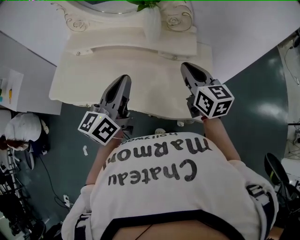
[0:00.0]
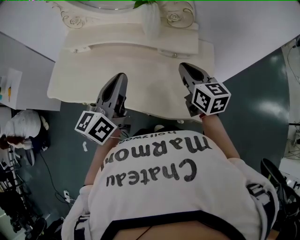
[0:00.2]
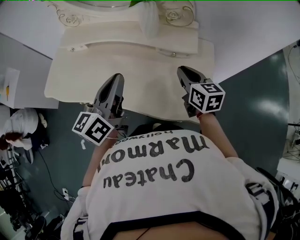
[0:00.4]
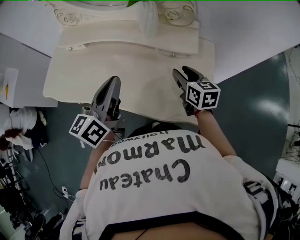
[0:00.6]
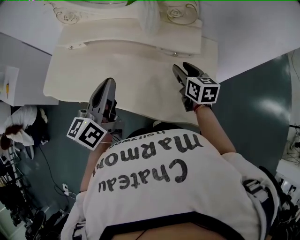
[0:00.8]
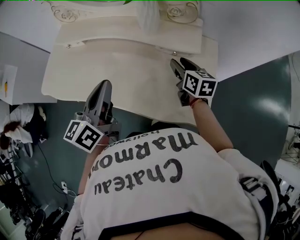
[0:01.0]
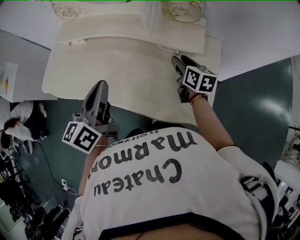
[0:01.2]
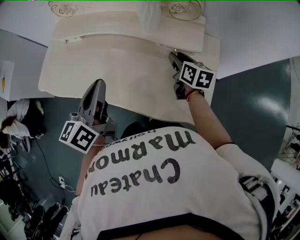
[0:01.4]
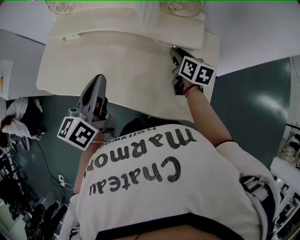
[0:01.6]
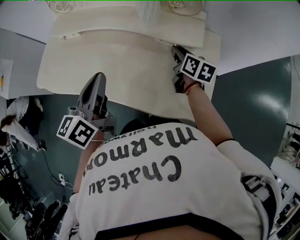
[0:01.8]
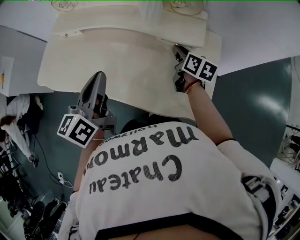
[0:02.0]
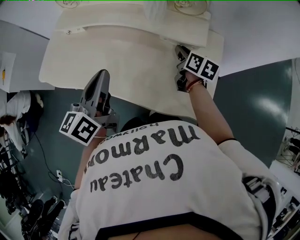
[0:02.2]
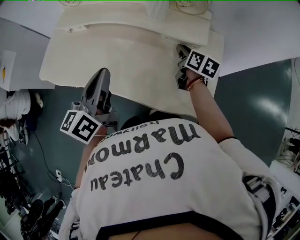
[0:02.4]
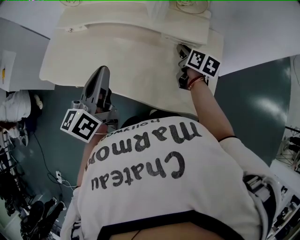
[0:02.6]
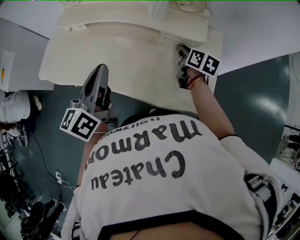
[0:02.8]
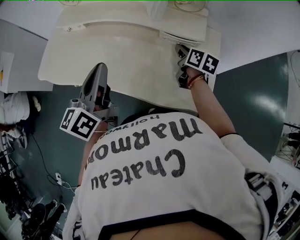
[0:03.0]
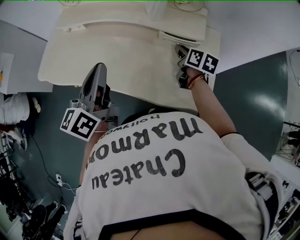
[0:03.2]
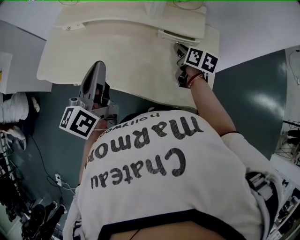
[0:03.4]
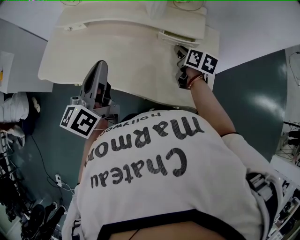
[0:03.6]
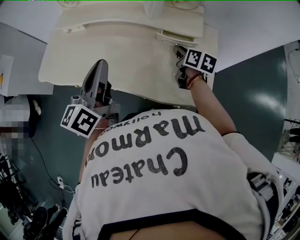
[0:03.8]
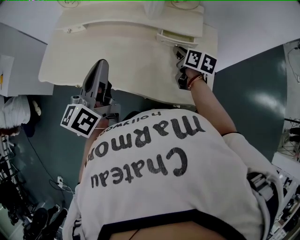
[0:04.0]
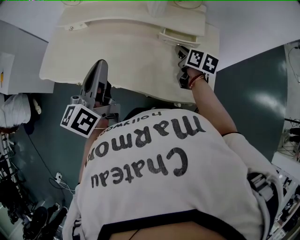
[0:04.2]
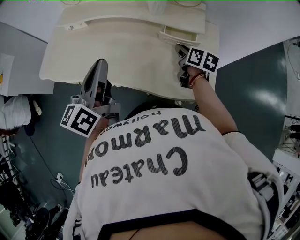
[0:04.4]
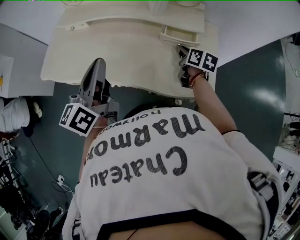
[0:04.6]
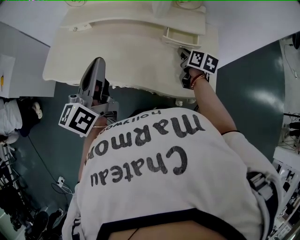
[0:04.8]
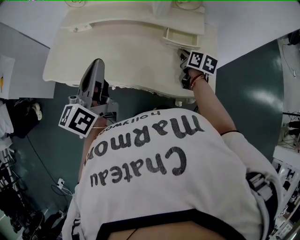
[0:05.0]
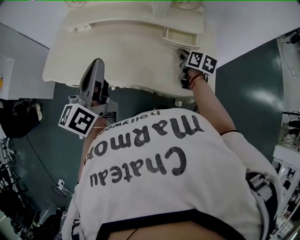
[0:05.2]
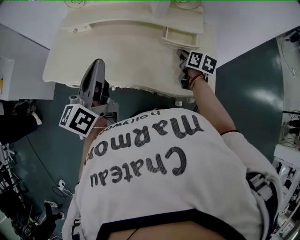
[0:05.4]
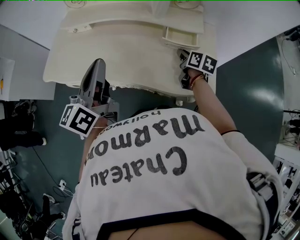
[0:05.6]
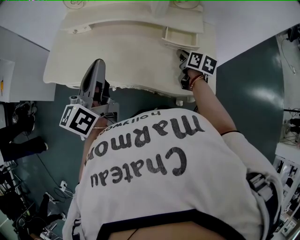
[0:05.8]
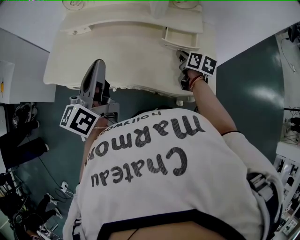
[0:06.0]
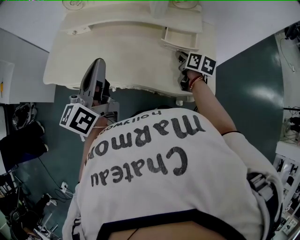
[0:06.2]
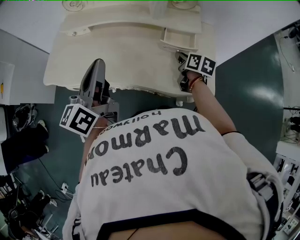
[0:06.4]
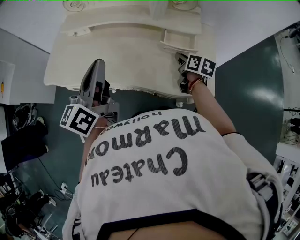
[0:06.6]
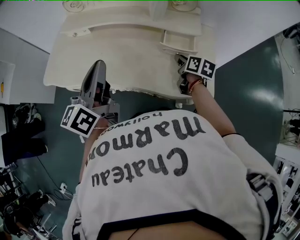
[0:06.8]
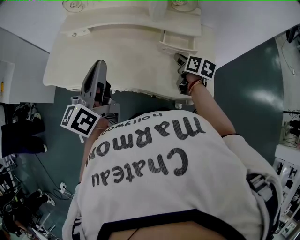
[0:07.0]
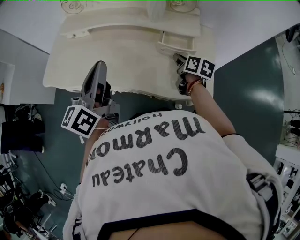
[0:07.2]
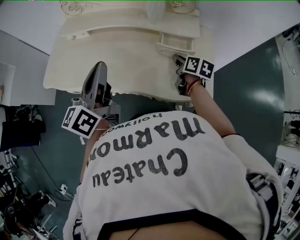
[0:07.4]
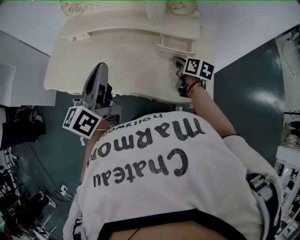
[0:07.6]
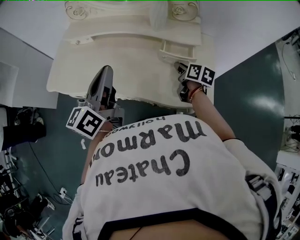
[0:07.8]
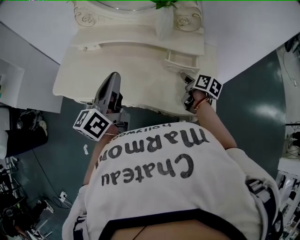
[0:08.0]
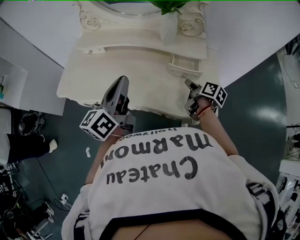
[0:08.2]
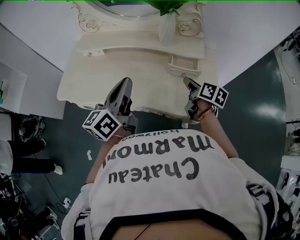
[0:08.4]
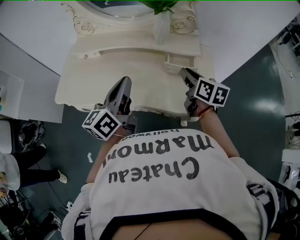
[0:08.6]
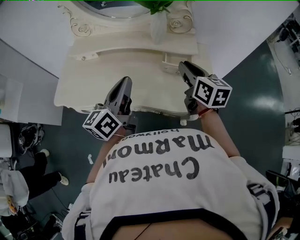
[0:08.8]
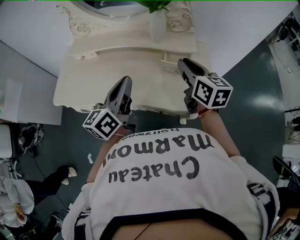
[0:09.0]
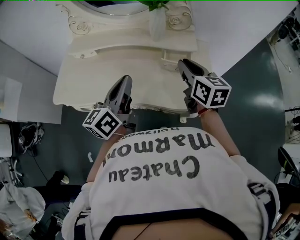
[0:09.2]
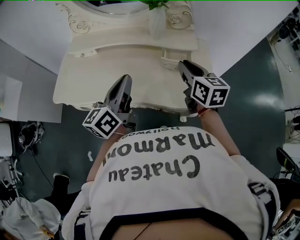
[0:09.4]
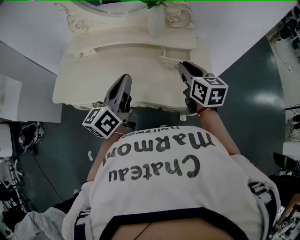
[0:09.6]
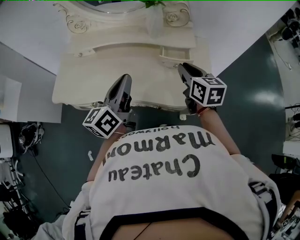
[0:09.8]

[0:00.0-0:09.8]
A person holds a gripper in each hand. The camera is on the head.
0:00.0 to 0:01.4: The left gripper moves downward, approximately 5 cm, while the right gripper moves downward and forward, some 20 cm, rotates some 20 degrees, and opens its fingers.
0:01.4 to 0:04.2: There are only small adjustments of the grippers.
0:04.2 to 0:05.6: The left gripper ends up roughly 5 cm from where it was.
0:05.6 to 0:07.0: The grippers make only small movements.
0:07.0 to 0:08.4: The right gripper travels upward by approximately 5 cm.
0:08.4 to 0:09.8: The right gripper moves upward, some 10 cm, and swivels some 30 degrees.

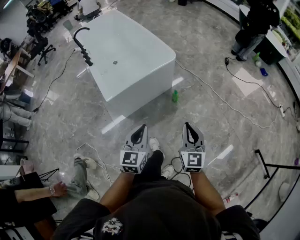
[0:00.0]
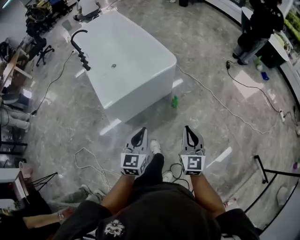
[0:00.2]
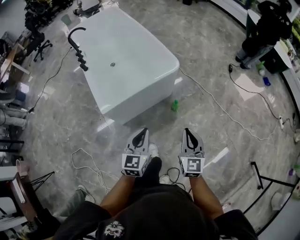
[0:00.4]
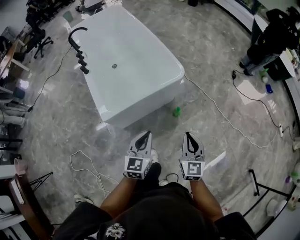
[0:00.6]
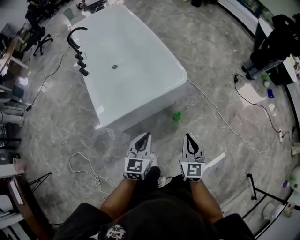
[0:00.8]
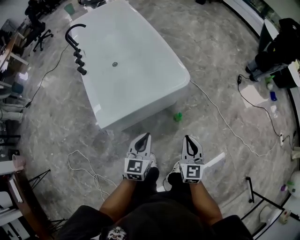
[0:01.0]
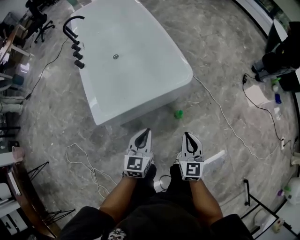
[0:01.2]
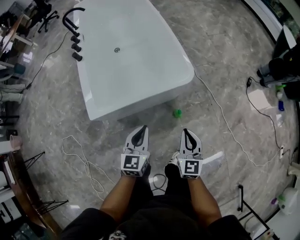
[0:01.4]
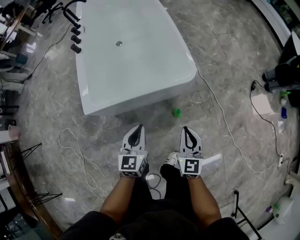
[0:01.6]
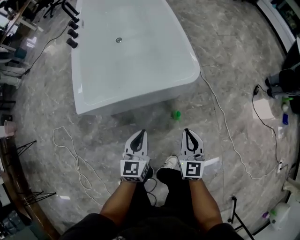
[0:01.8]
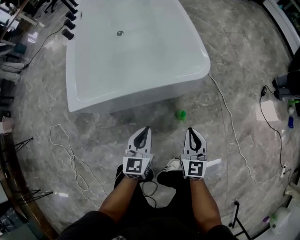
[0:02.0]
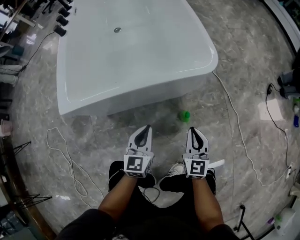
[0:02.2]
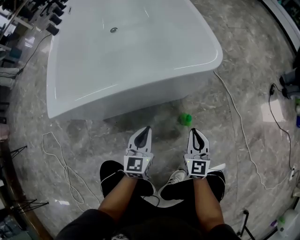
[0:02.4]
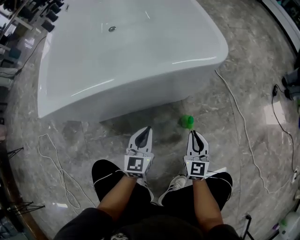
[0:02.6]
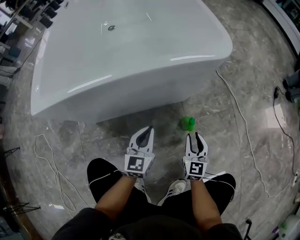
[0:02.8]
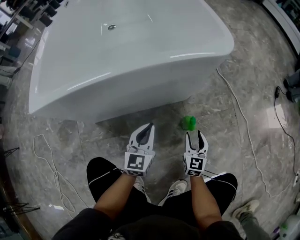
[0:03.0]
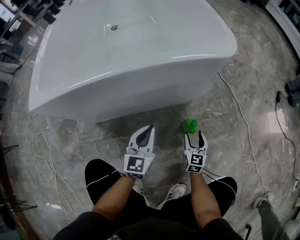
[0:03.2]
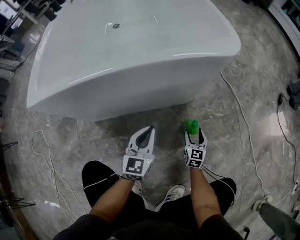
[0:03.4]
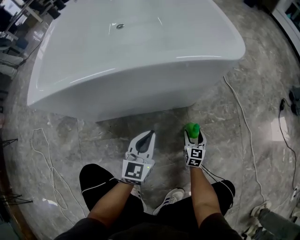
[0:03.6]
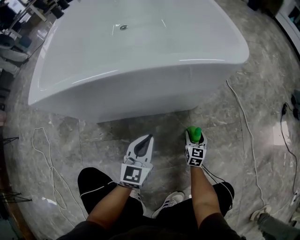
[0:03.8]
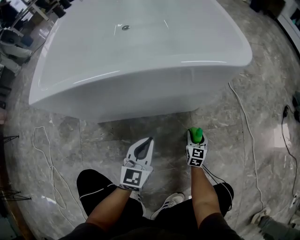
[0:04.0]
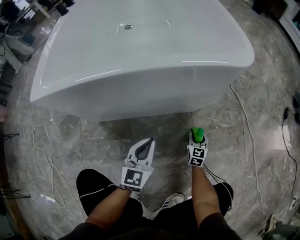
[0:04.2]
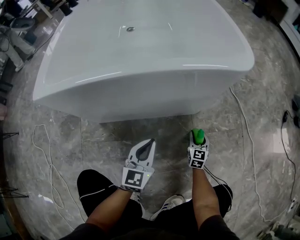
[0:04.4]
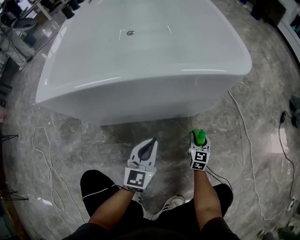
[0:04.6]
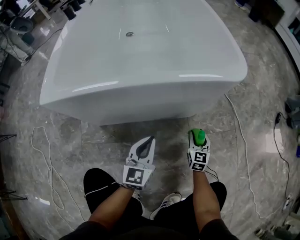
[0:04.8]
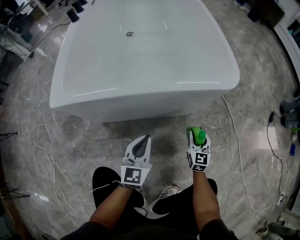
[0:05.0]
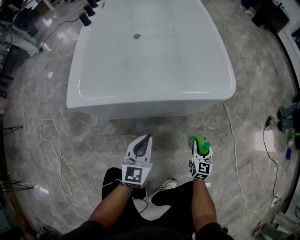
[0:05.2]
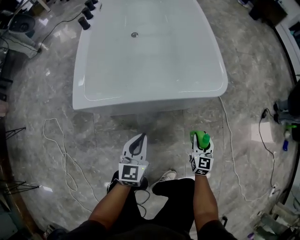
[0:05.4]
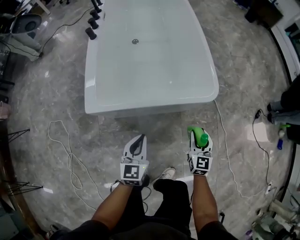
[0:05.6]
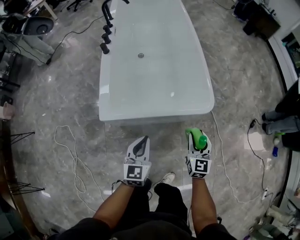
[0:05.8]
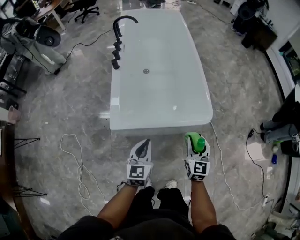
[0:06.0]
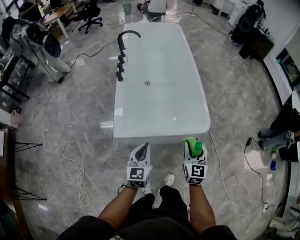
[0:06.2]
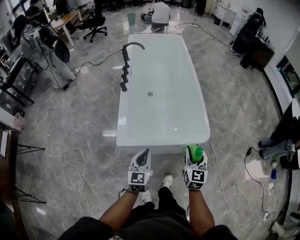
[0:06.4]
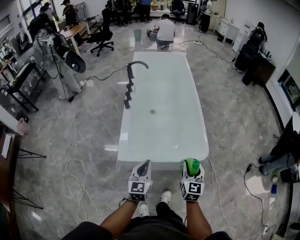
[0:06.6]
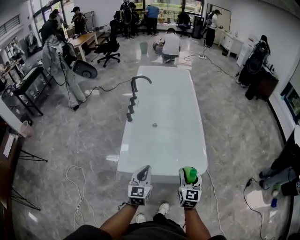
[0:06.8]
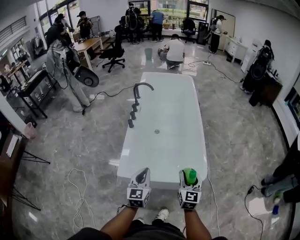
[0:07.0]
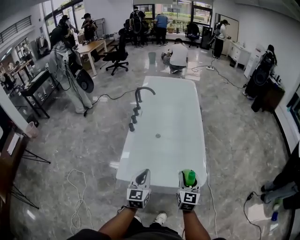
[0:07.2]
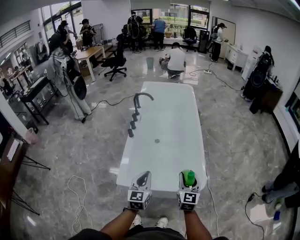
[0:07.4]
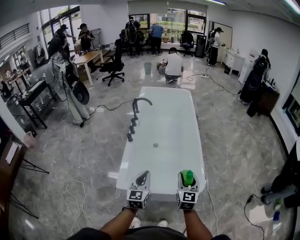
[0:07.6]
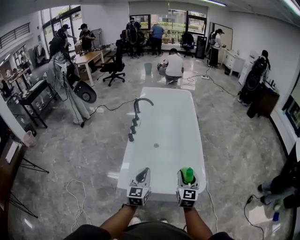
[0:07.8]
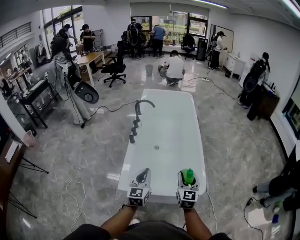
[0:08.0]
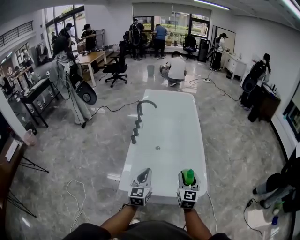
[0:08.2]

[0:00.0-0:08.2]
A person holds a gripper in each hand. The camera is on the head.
0:00.0 to 0:01.6: Both grippers move forward and downward, approximately 40 cm. The left gripper swivels roughly 20 degrees.
0:01.6 to 0:03.2: Both grippers travel together downward, about 50 cm. The right gripper opens up.
0:03.2 to 0:05.0: The left gripper is displaced upward and to the left by about 15 cm. The right gripper is displaced upward and forward by approximately 15 cm.
0:05.0 to 0:06.6: Both grippers move upward, approximately 60 cm.
0:06.6 to 0:08.2: Both grippers move forward and upward, about 15 cm.

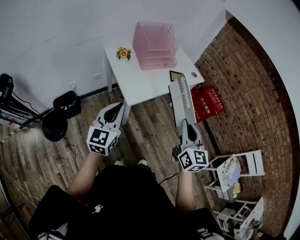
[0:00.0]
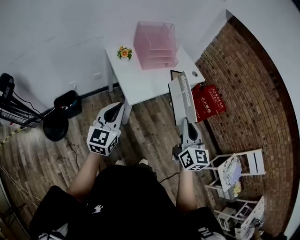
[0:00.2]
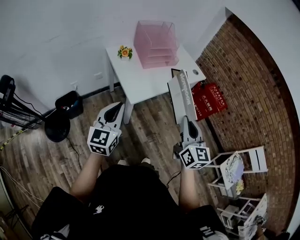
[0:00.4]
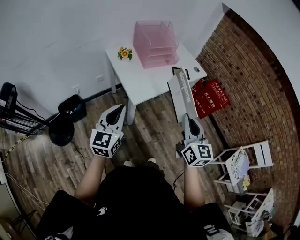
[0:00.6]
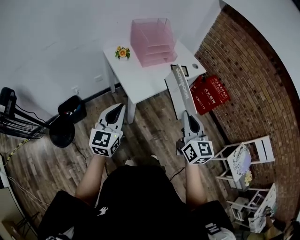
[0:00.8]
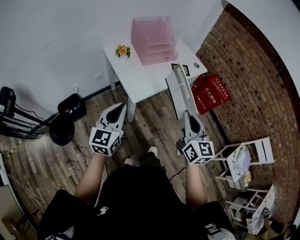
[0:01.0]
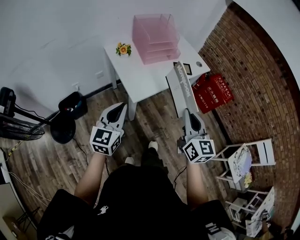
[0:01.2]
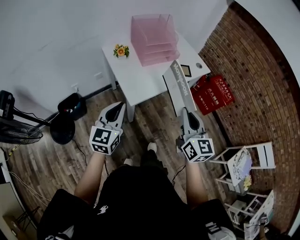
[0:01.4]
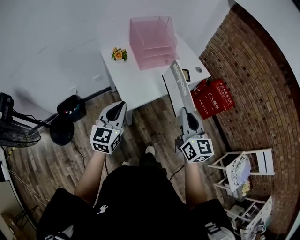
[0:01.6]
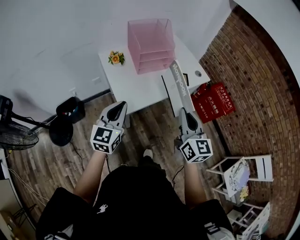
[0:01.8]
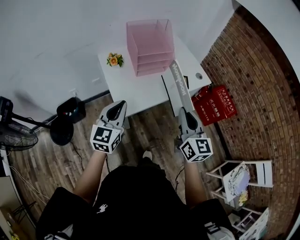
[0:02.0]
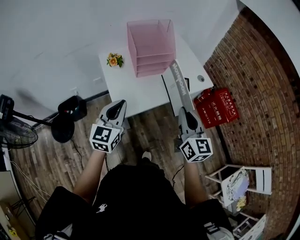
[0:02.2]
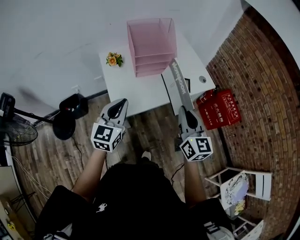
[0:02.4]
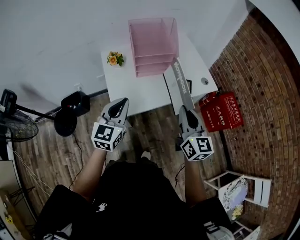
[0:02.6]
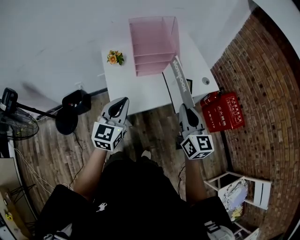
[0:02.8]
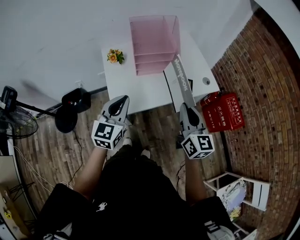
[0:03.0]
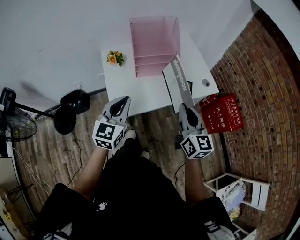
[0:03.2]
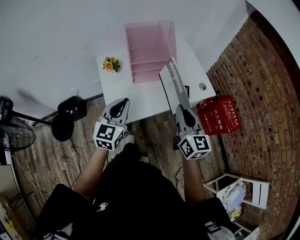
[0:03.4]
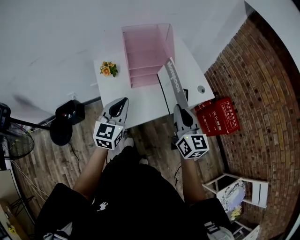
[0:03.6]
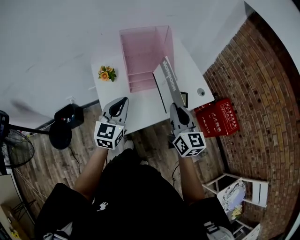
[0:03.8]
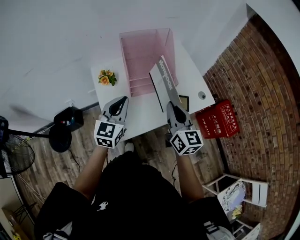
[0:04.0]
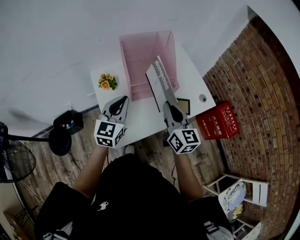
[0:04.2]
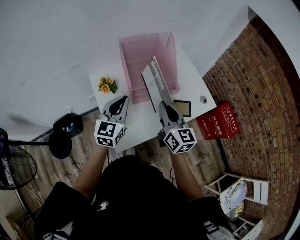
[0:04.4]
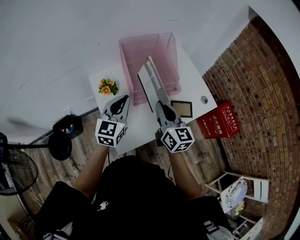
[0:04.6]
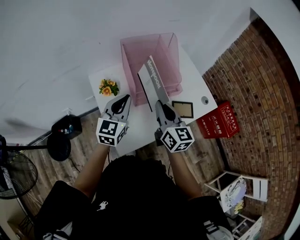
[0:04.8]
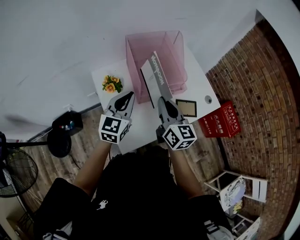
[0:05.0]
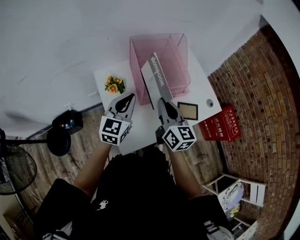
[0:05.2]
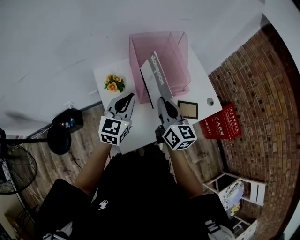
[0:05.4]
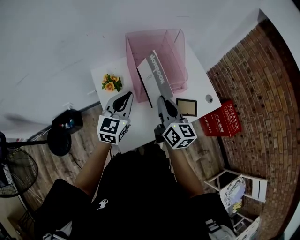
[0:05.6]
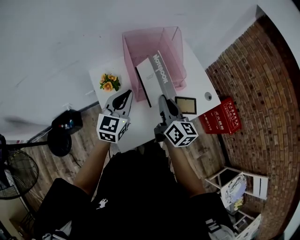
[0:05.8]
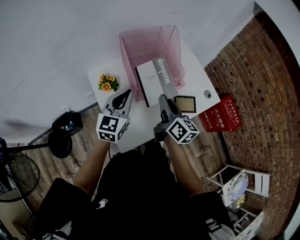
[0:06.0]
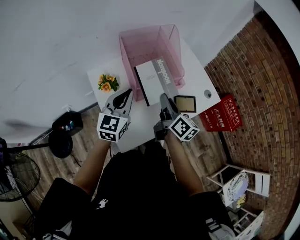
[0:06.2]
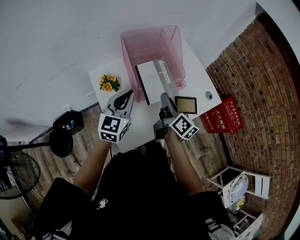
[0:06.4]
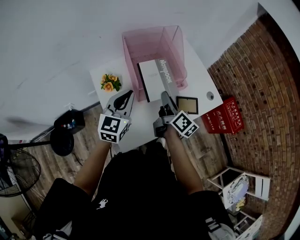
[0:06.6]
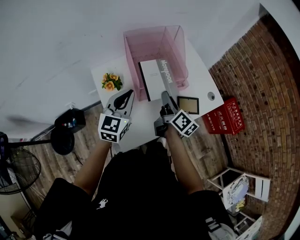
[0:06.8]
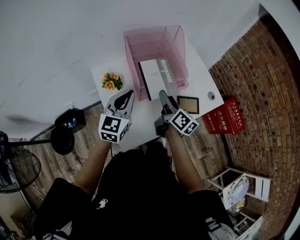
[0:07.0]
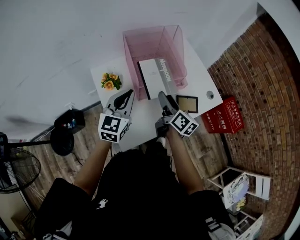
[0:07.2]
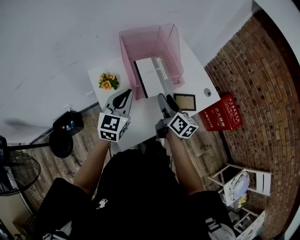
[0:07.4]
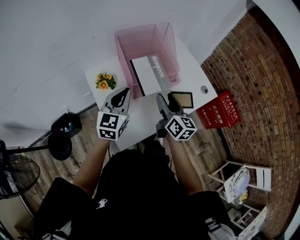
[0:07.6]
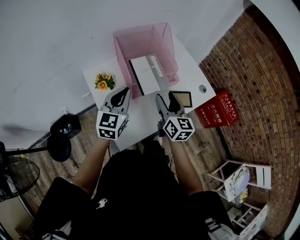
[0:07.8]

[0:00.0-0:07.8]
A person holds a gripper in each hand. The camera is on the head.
0:00.0 to 0:01.6: The grippers both shift forward by about 10 cm.
0:01.6 to 0:03.2: Both grippers travel together forward and to the right, roughly 20 cm.
0:03.2 to 0:04.6: The left gripper is displaced forward by some 20 cm. The right gripper shifts about 20 cm forward and to the left.
0:04.6 to 0:06.2: The right gripper travels downward by some 5 cm, and changes its angle by about 30 degrees.
0:06.2 to 0:07.8: The right gripper swivels approximately 30 degrees, and opens.
